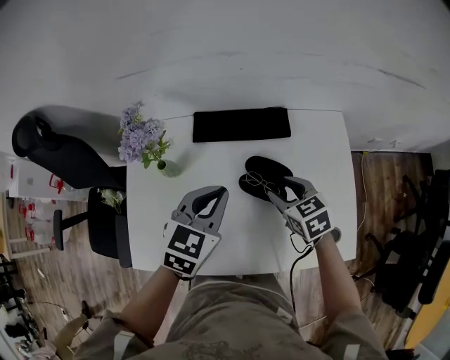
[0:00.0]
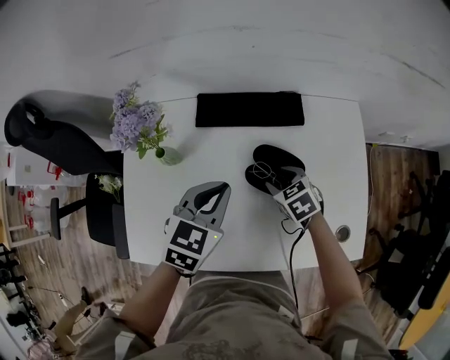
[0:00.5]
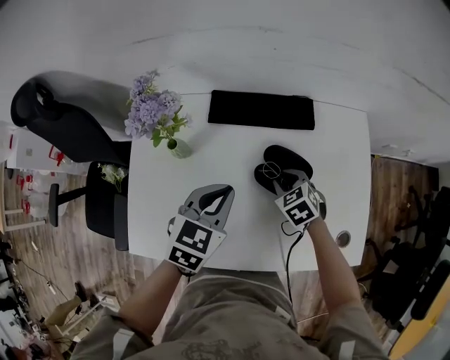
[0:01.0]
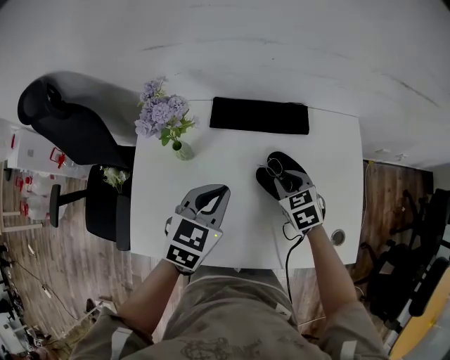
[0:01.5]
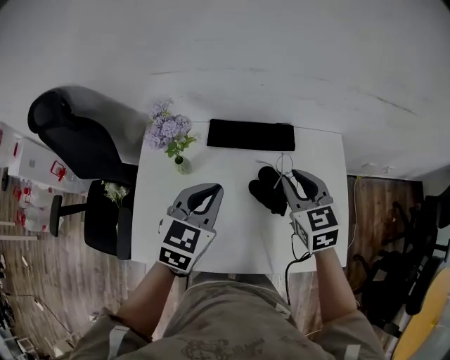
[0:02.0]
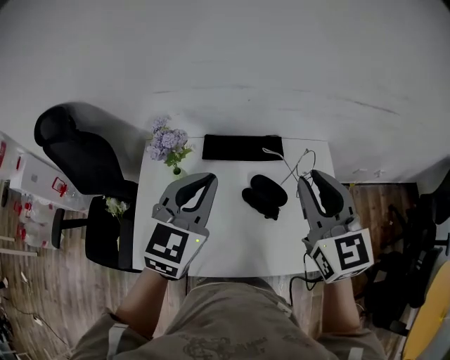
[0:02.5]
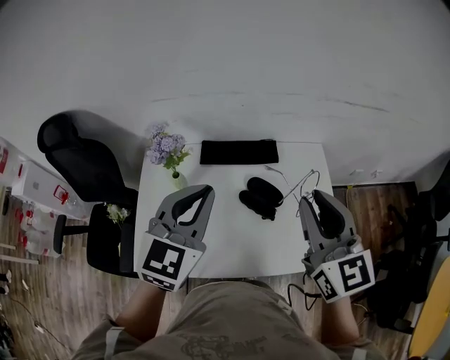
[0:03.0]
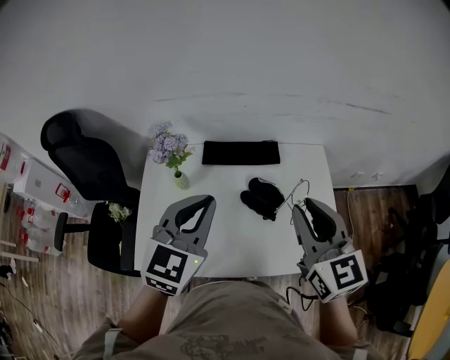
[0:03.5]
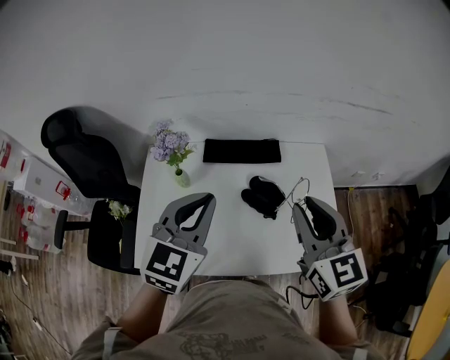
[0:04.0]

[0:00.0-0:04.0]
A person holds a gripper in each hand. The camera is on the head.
0:00.0 to 0:02.0: The right gripper shifts roughly 15 cm upward, rotates some 20 degrees, and closes up. The left gripper shifts by about 5 cm.
0:02.0 to 0:04.0: Both grippers move upward and backward, approximately 15 cm. The right gripper changes its angle by about 20 degrees.

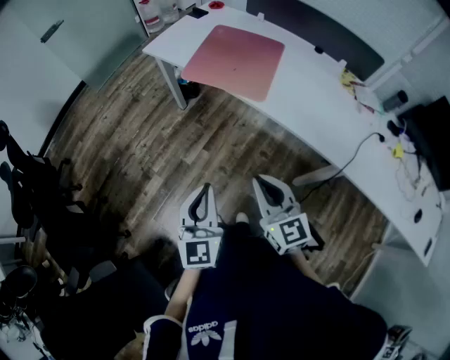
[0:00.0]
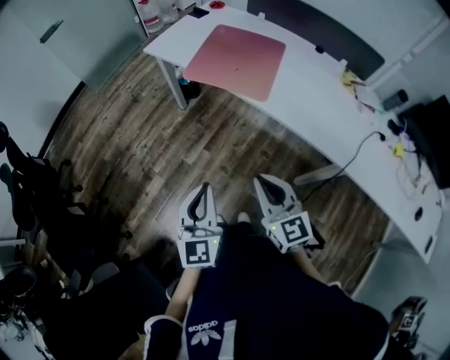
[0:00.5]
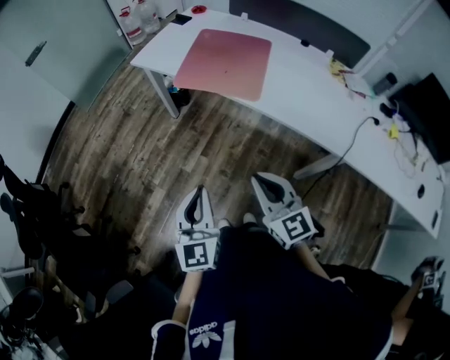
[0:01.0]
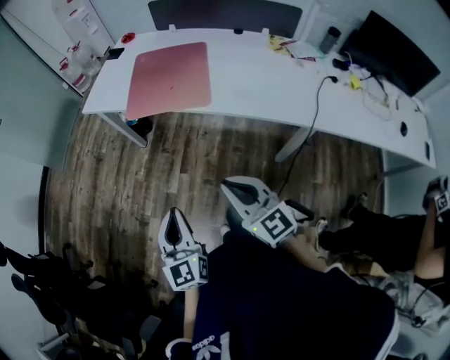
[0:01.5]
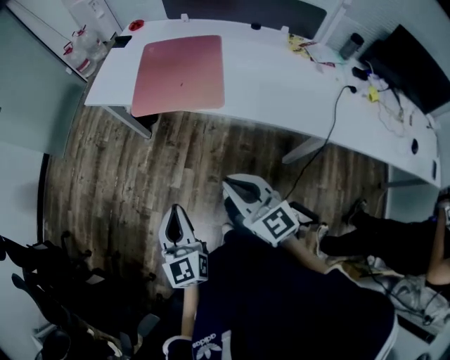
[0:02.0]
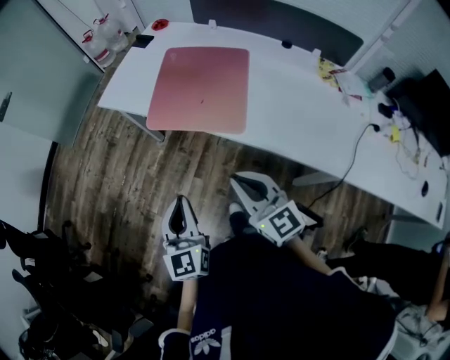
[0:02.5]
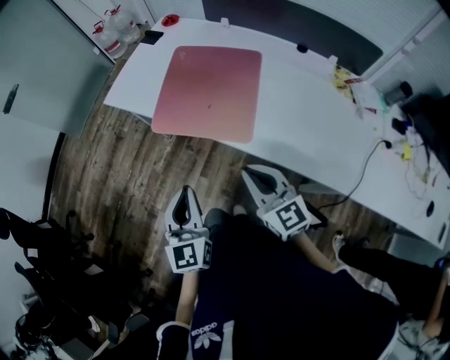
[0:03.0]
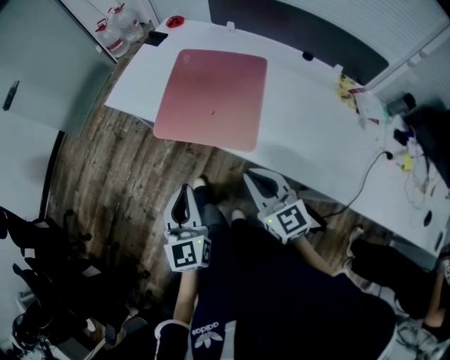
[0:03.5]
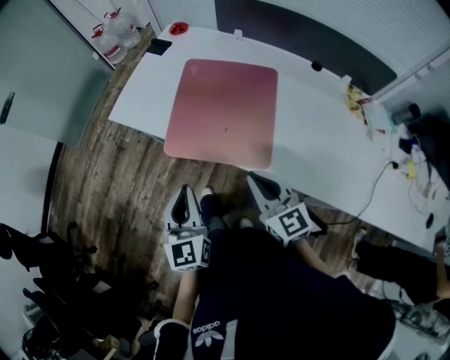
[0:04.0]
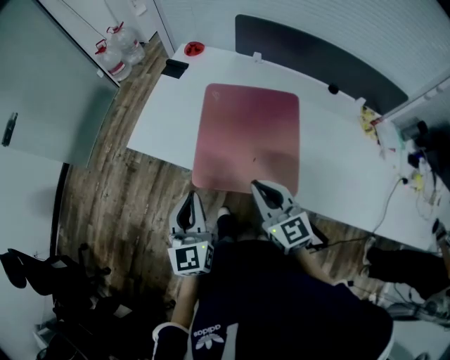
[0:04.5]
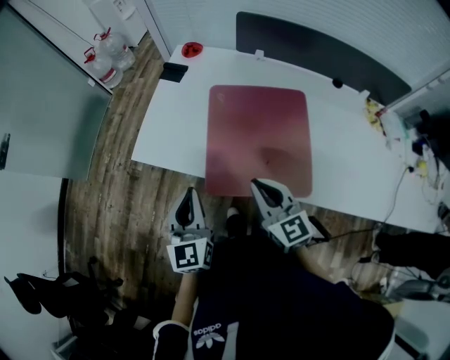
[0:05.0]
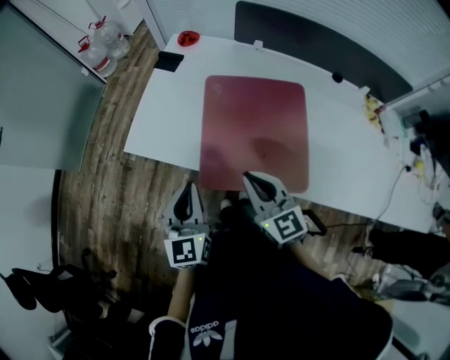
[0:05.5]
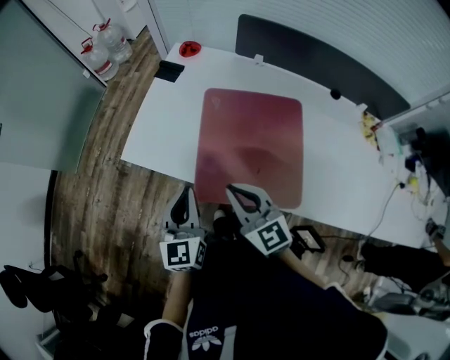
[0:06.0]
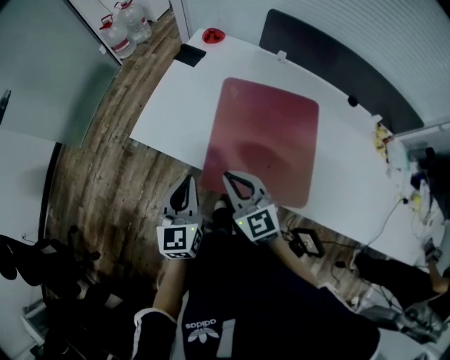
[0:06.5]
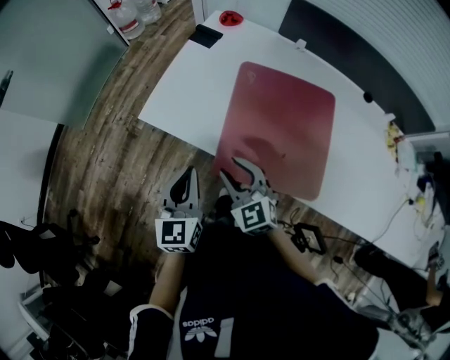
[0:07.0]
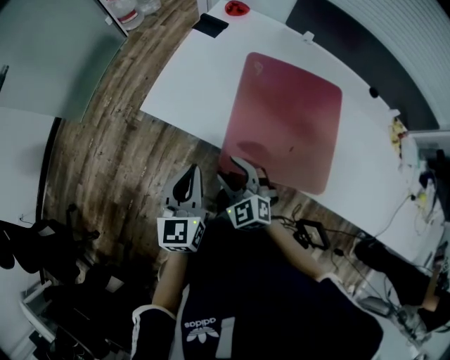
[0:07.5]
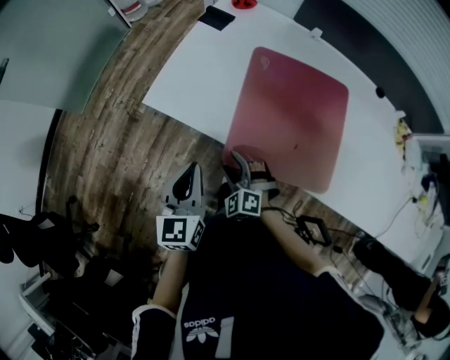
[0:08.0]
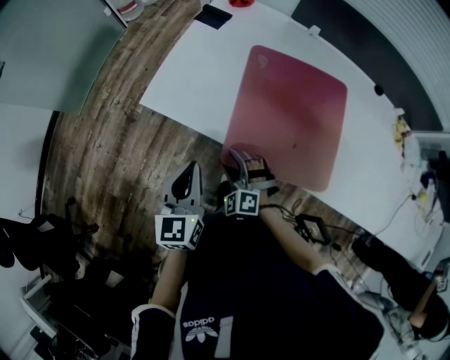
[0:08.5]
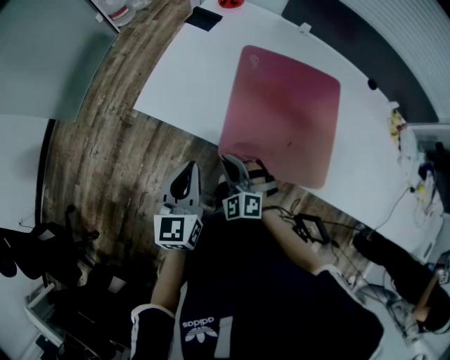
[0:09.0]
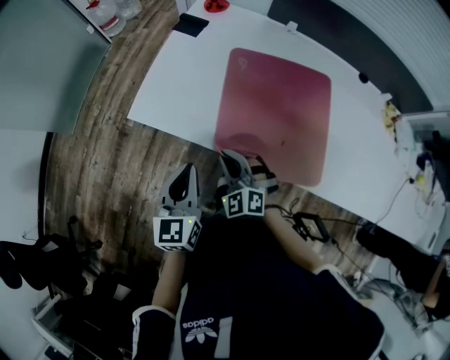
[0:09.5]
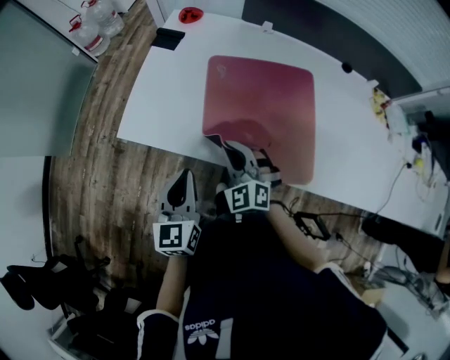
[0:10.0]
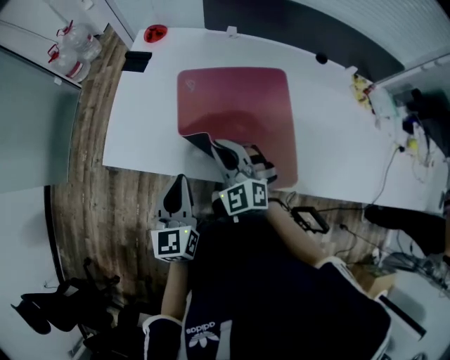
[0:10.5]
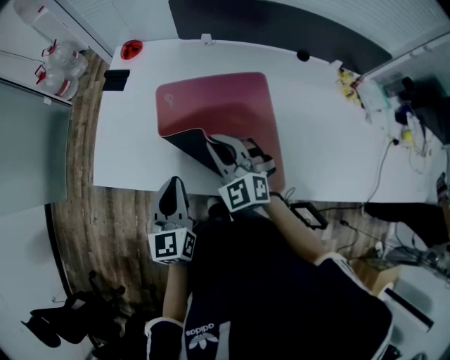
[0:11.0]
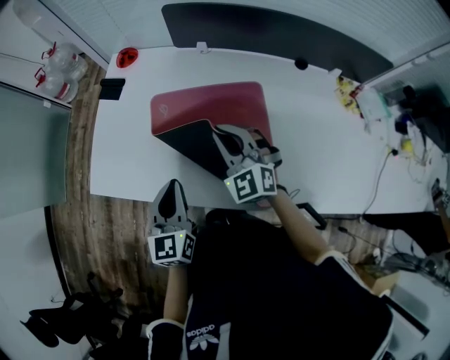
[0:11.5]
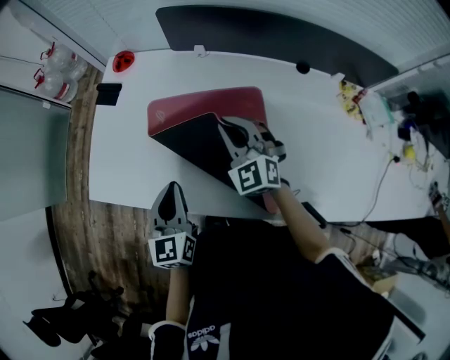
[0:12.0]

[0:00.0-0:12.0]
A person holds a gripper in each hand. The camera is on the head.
0:00.0 to 0:02.0: The right gripper heads forward, covering some 5 cm; the left gripper moves forward and to the left, some 10 cm.
0:02.0 to 0:04.0: The grippers both shift forward by some 30 cm.
0:04.0 to 0:06.0: Both grippers move forward and to the left, approximately 25 cm.
0:06.0 to 0:08.0: The left gripper travels to the left and downward by about 10 cm; the right gripper shifts roughly 25 cm downward and to the left, turns by roughly 50 degrees, and opens up.
0:08.0 to 0:10.0: The right gripper is displaced upward, forward and to the right by approximately 15 cm, rotates about 20 degrees, and closes. The left gripper shifts by about 5 cm.
0:10.0 to 0:12.0: Both grippers travel together to the right and forward, approximately 25 cm.

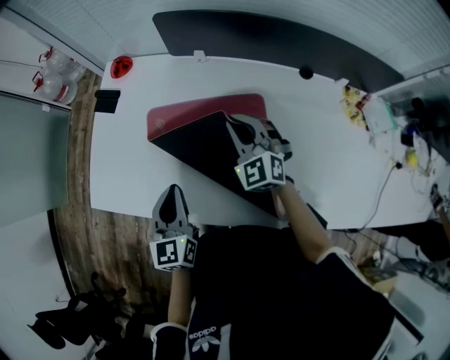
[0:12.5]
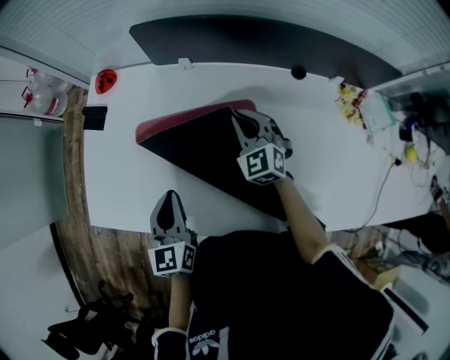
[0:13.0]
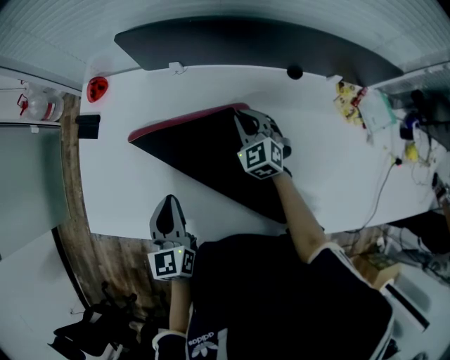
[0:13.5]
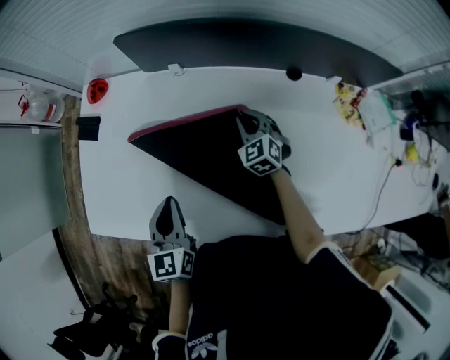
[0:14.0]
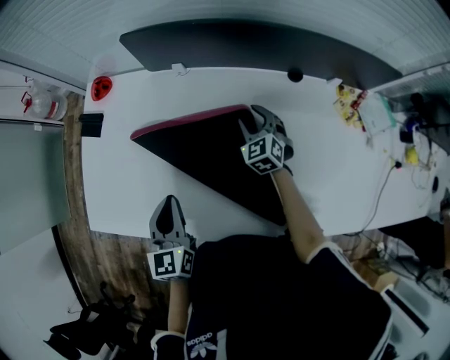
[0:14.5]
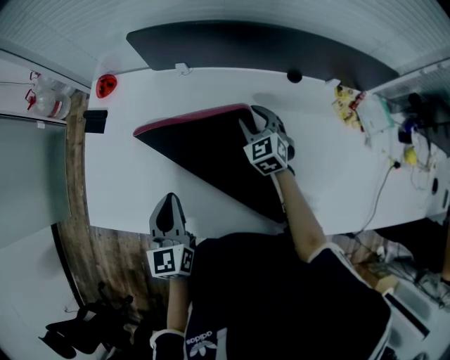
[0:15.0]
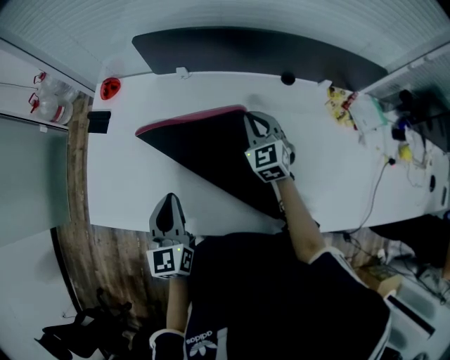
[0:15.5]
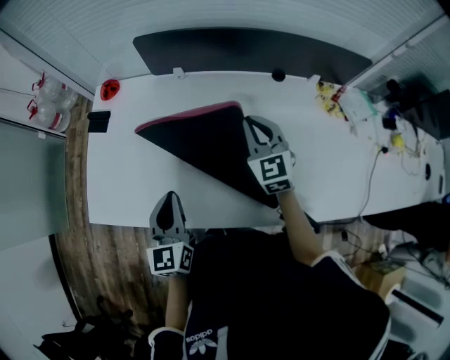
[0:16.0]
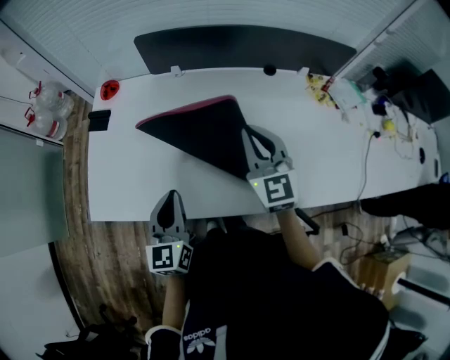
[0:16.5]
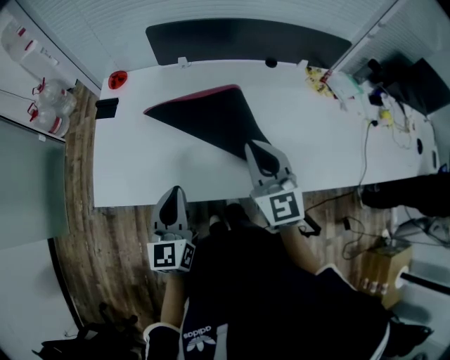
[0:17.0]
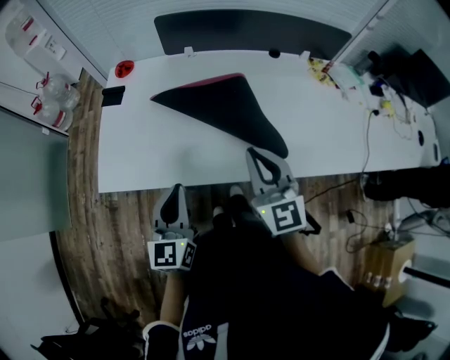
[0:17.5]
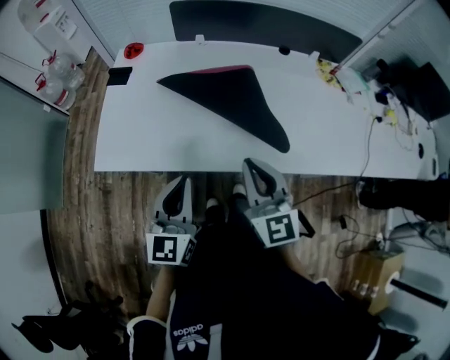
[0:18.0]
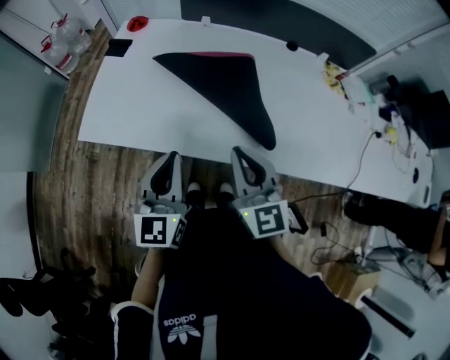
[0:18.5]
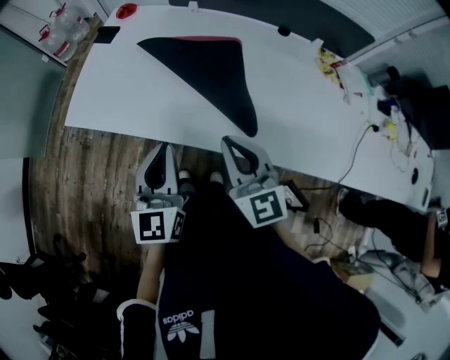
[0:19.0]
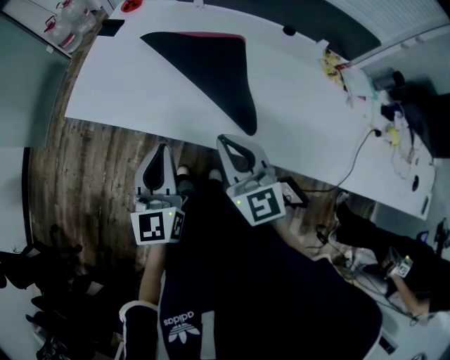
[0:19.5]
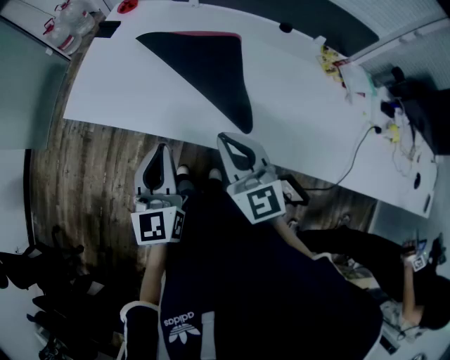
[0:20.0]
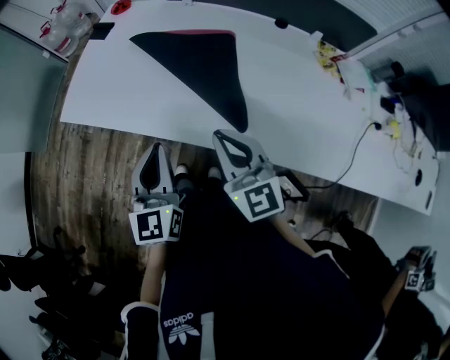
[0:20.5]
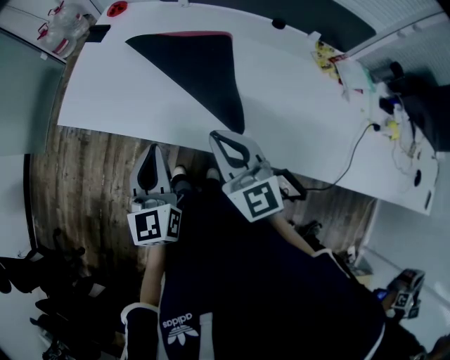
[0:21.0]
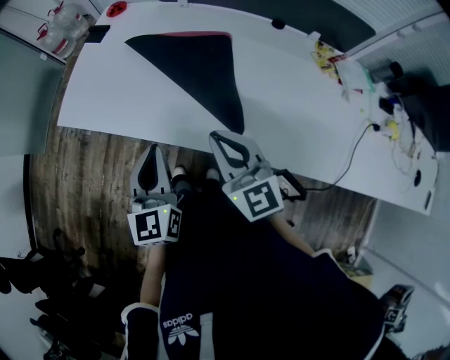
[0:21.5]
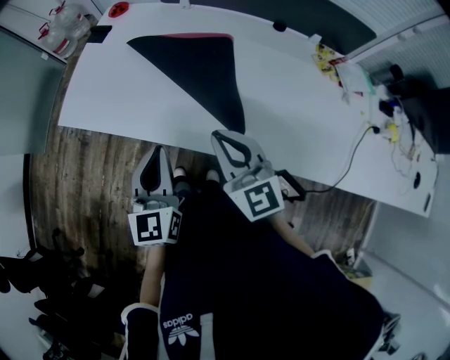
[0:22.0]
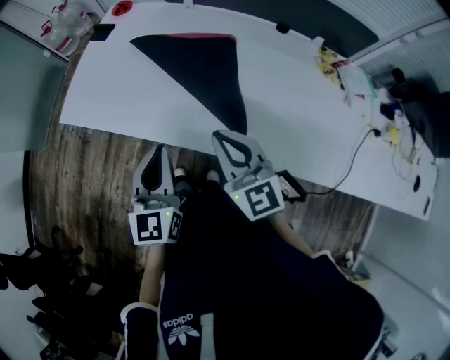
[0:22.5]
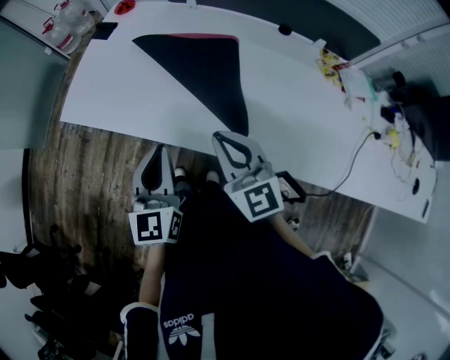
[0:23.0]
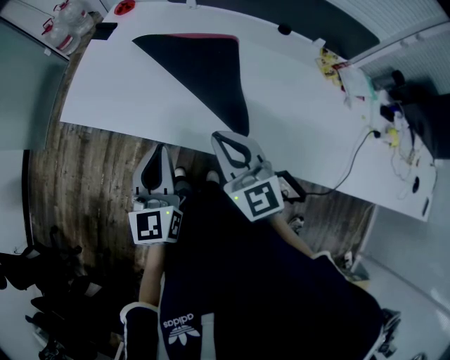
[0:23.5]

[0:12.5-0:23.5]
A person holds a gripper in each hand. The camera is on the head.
0:12.5 to 0:14.5: The right gripper travels to the right, downward and forward by approximately 20 cm, rotates approximately 20 degrees, and opens its fingers, while the left gripper ends up about 5 cm from where it was.
0:14.5 to 0:16.0: The right gripper travels upward and backward by approximately 20 cm, swivels about 20 degrees, and closes, while the left gripper heads backward, covering approximately 5 cm.
0:16.0 to 0:18.0: The left gripper goes roughly 20 cm backward. Meanwhile the right gripper travels backward by some 30 cm.
0:18.0 to 0:20.0: Both grippers travel together to the right, about 10 cm. The left gripper turns by some 20 degrees; the right gripper turns by some 20 degrees.
0:20.0 to 0:21.5: The grippers stay close to where they were, moving slightly.
0:21.5 to 0:23.5: The two grippers keep their place.
